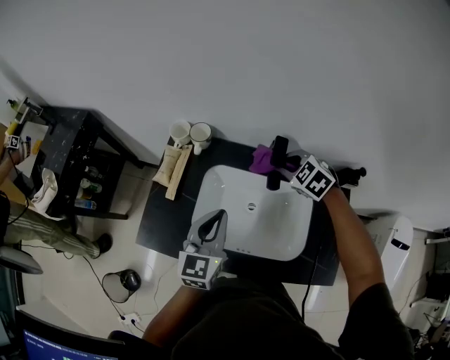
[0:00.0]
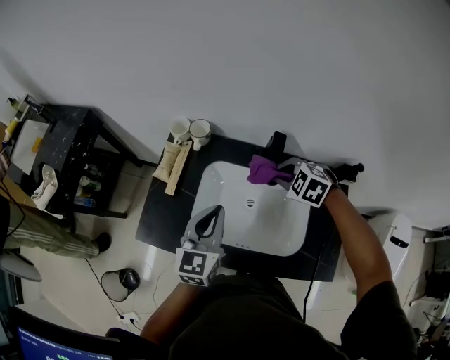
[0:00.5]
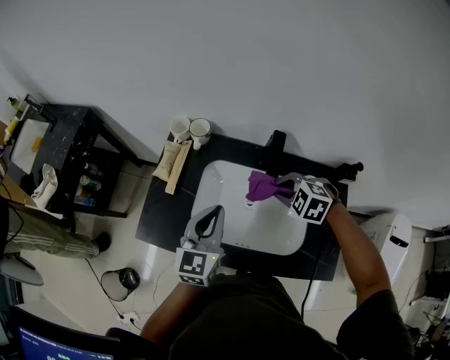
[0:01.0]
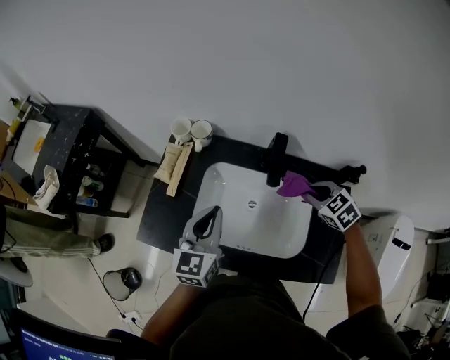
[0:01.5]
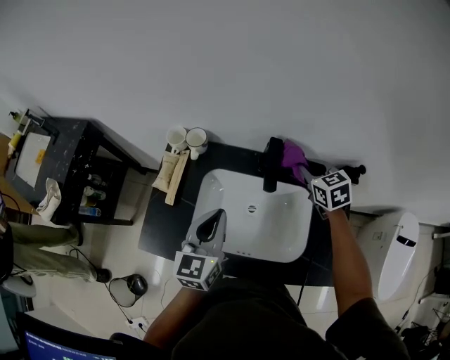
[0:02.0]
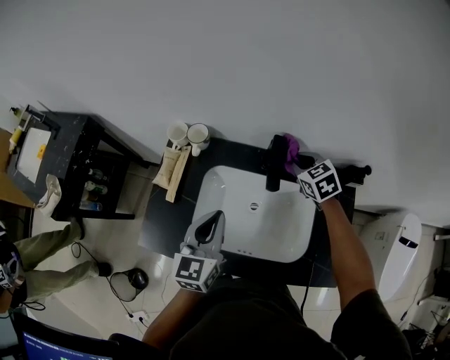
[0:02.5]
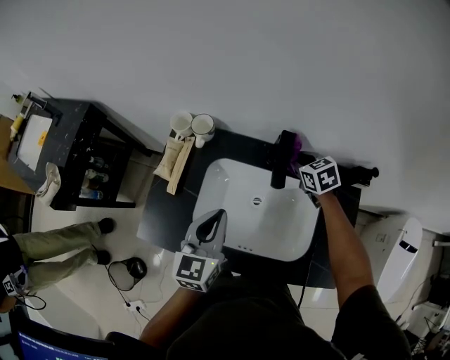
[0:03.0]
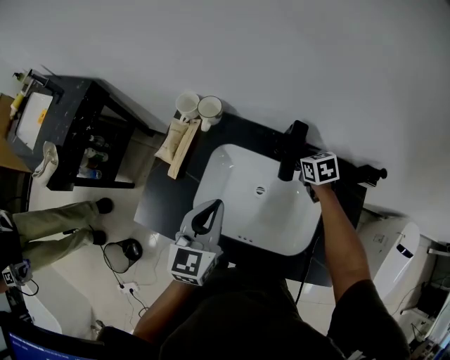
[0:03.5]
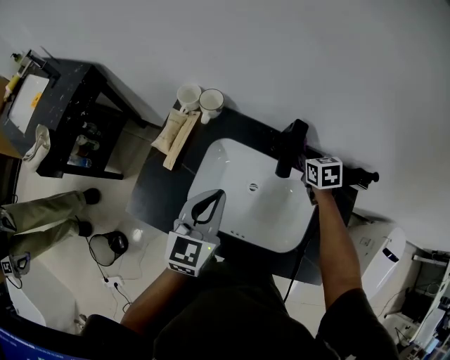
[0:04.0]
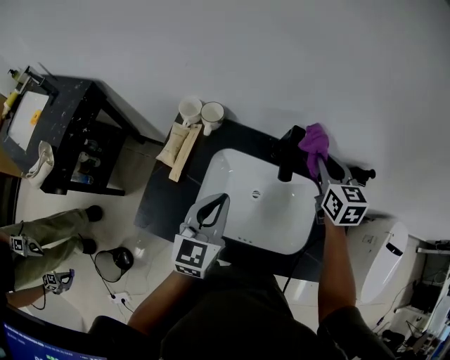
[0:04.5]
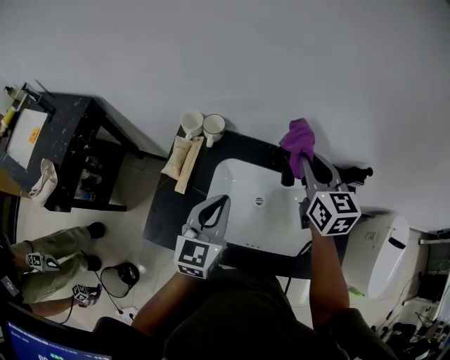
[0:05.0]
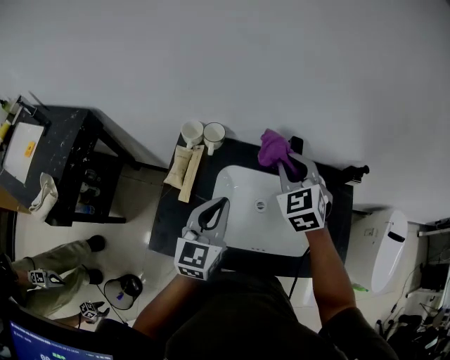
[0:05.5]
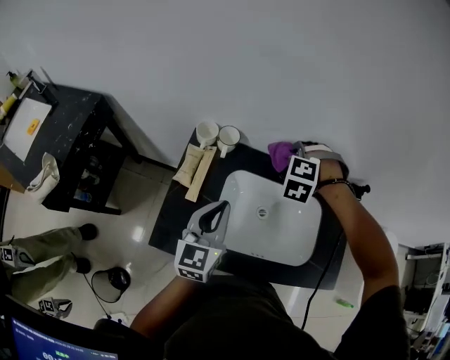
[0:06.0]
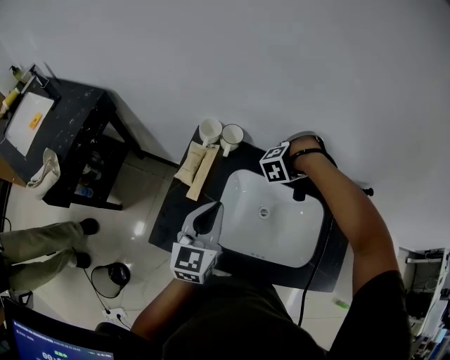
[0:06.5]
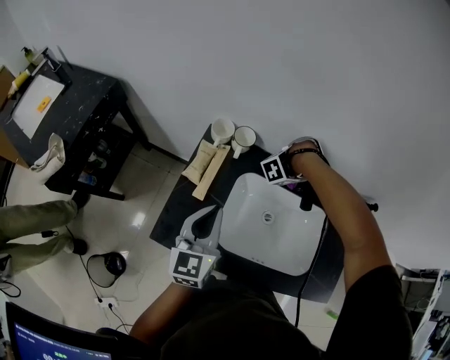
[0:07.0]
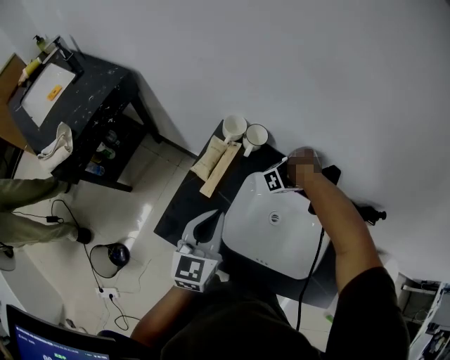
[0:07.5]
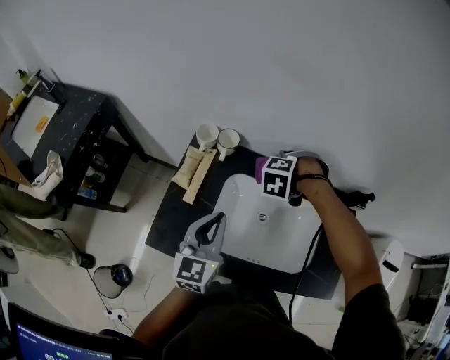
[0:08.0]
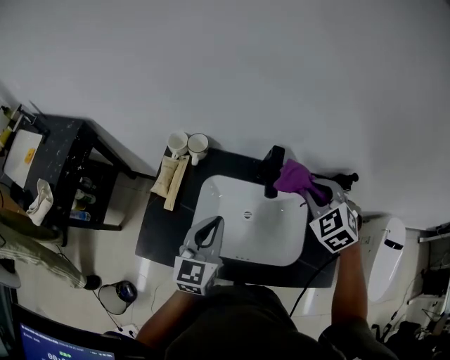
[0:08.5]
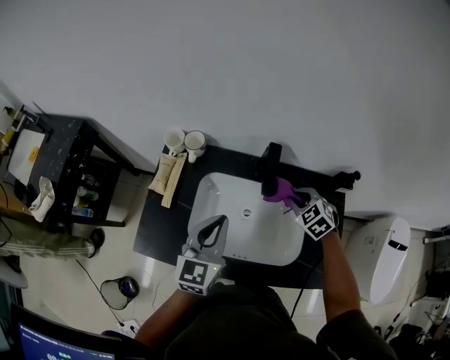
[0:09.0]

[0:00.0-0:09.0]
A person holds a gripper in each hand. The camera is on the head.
0:00.0 to 0:02.0: The right gripper moves to the right, approximately 10 cm, and rotates some 40 degrees.
0:02.0 to 0:04.5: The right gripper moves about 15 cm downward and comes back.
0:04.5 to 0:07.0: The right gripper goes approximately 15 cm downward, and rotates about 140 degrees. The left gripper moves roughly 10 cm.
0:07.0 to 0:09.0: The right gripper moves up and down over about 20 cm, changing direction 2 times, and changes its angle by some 90 degrees. Meanwhile the left gripper changes place by some 15 cm.

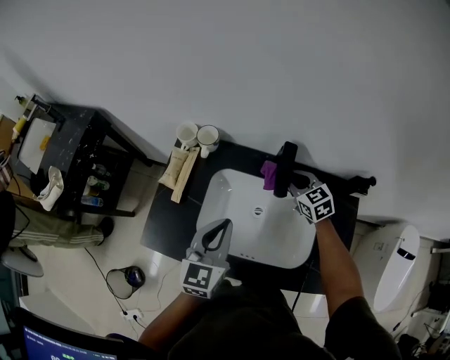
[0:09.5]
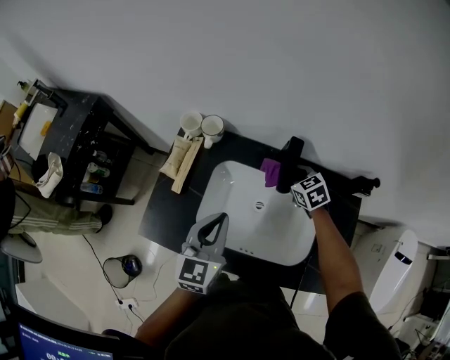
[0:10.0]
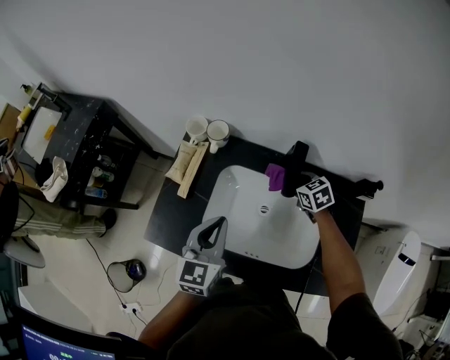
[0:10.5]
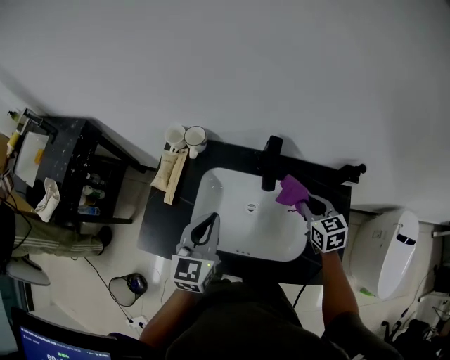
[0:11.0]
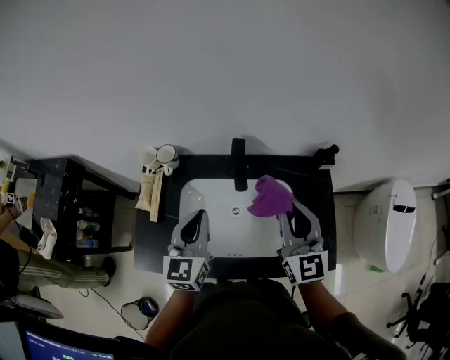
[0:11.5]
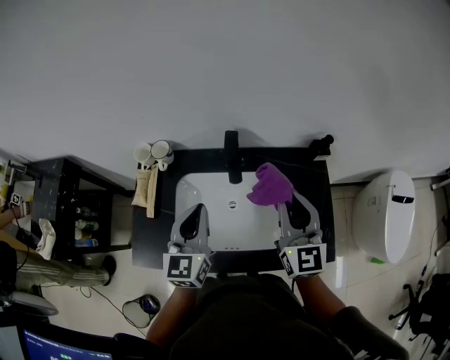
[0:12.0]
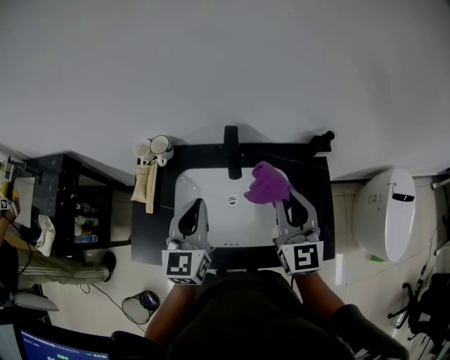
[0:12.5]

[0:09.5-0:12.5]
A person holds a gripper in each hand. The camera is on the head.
0:09.5 to 0:11.0: The right gripper moves backward and to the right, approximately 15 cm.
0:11.0 to 0:12.5: The left gripper ends up about 5 cm from where it was. Meanwhile the right gripper shifts roughly 20 cm upward and backward, and tilts its fingers about 30 degrees upward.

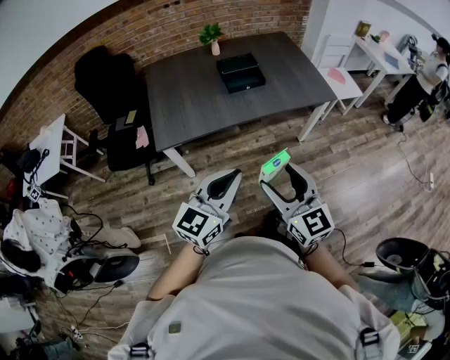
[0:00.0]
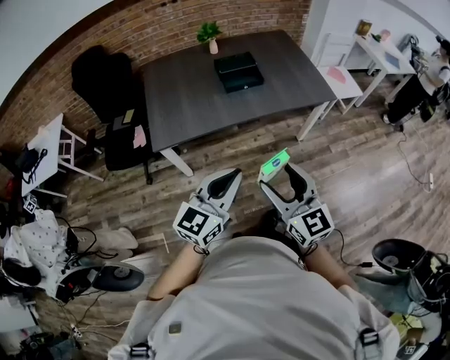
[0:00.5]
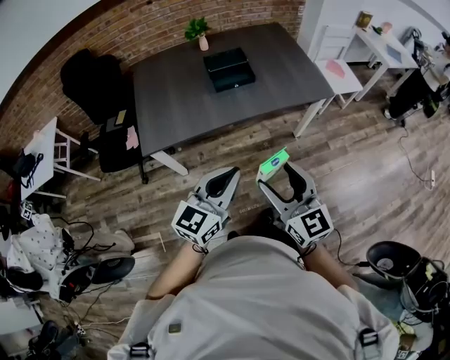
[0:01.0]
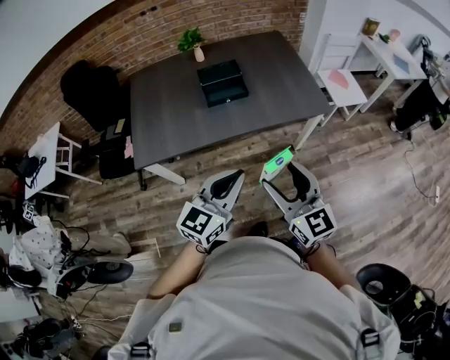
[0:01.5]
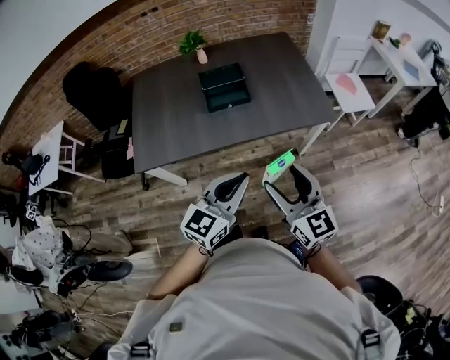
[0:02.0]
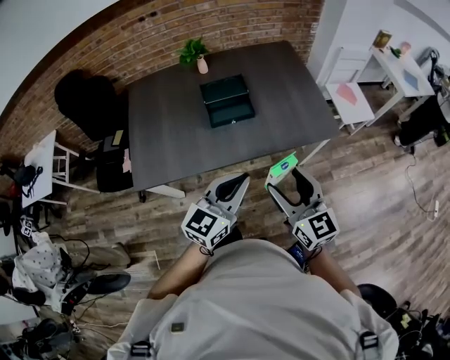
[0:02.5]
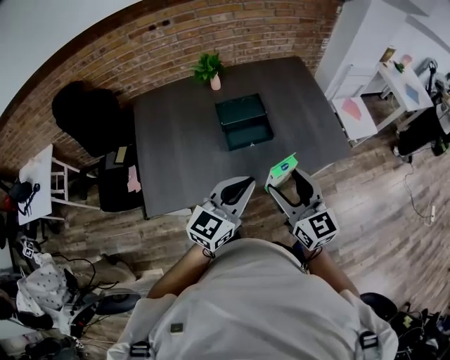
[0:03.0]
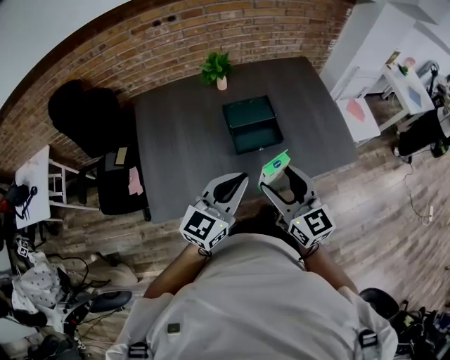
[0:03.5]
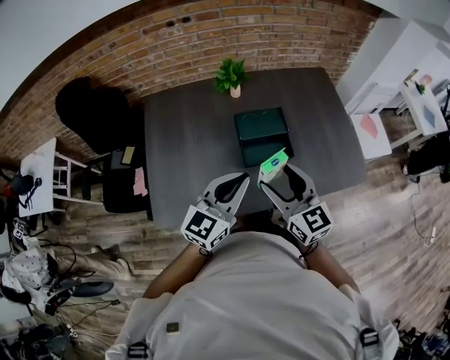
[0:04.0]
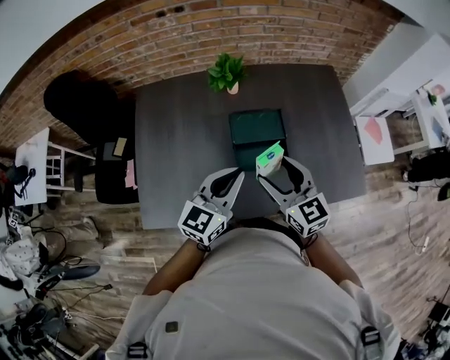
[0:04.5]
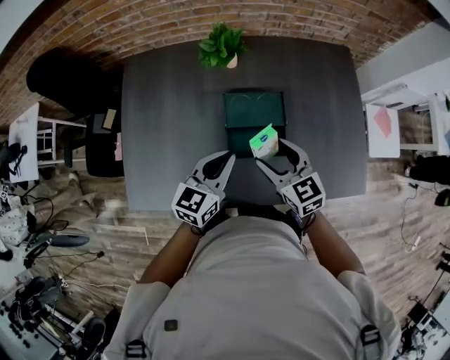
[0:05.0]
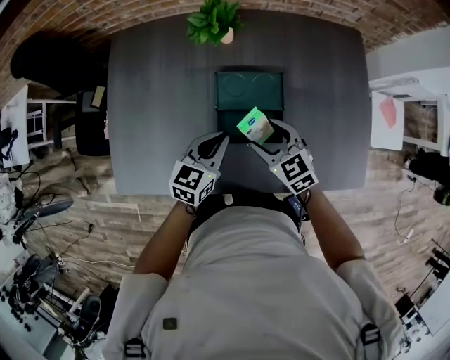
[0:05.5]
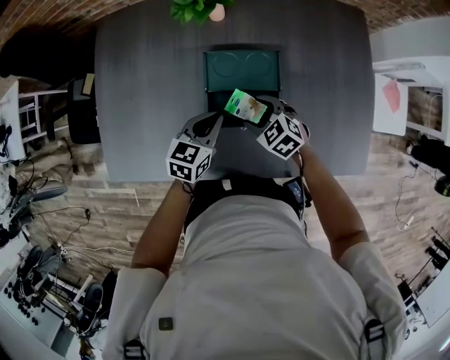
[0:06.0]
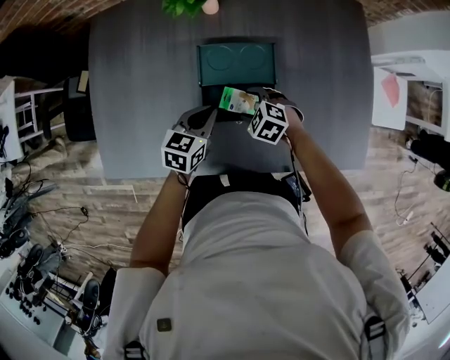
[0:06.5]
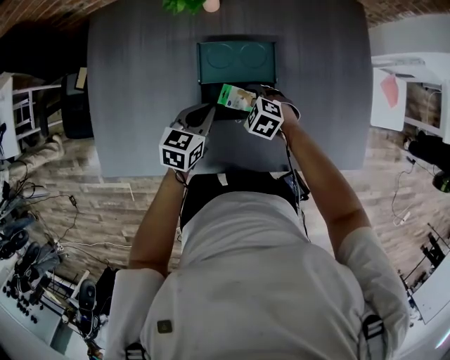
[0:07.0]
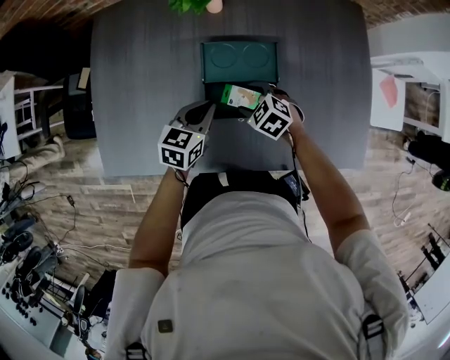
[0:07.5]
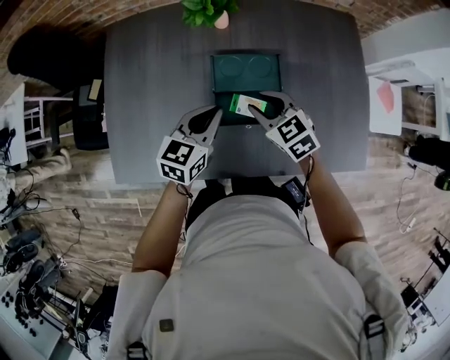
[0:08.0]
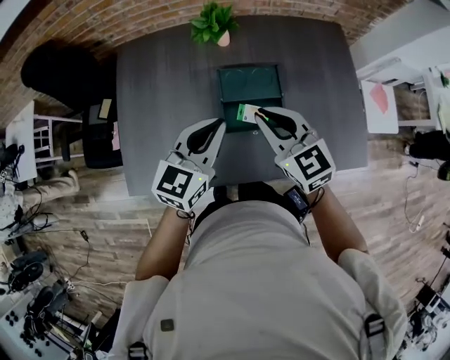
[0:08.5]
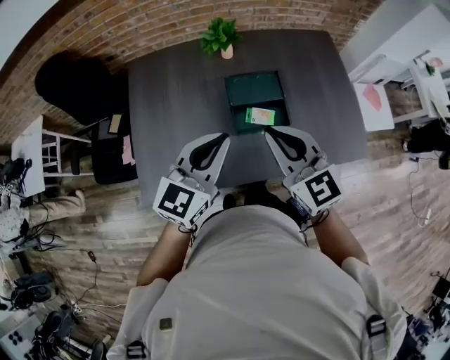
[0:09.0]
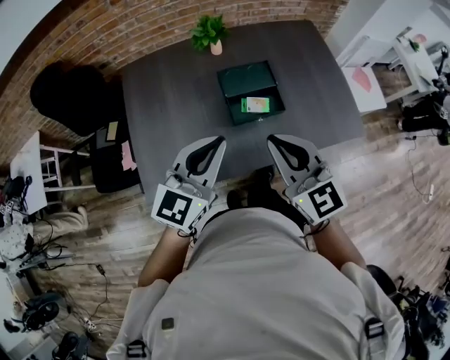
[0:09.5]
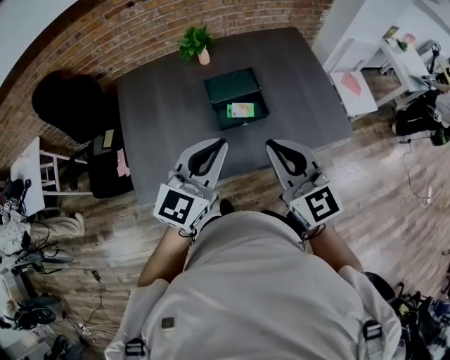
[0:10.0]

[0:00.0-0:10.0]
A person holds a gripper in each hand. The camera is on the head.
0:00.0 to 0:02.0: Both grippers move forward and to the right, about 30 cm.
0:02.0 to 0:04.0: The grippers both shift forward and to the left by about 40 cm.
0:04.0 to 0:06.0: The two grippers go approximately 35 cm downward and forward. The right gripper points its fingers some 40 degrees further downward, while the left gripper angles its fingers downward, by about 30 degrees.
0:06.0 to 0:08.0: Both grippers travel together upward, approximately 10 cm. The right gripper closes up.
0:08.0 to 0:10.0: The grippers both shift backward and upward by roughly 35 cm. The left gripper rotates approximately 30 degrees, while the right gripper points its fingers approximately 30 degrees further upward, and closes.

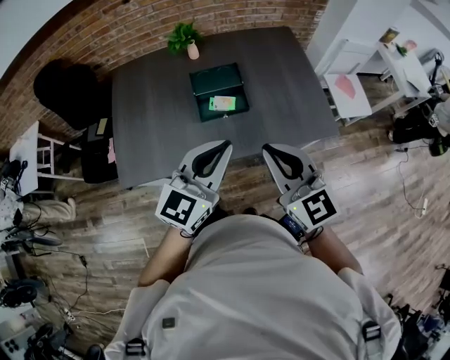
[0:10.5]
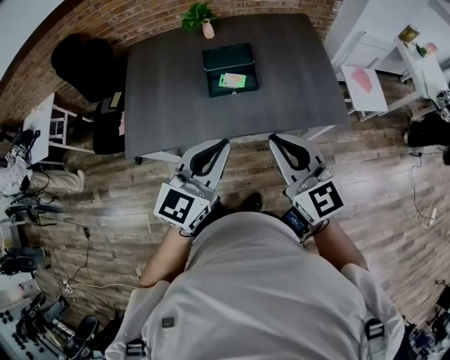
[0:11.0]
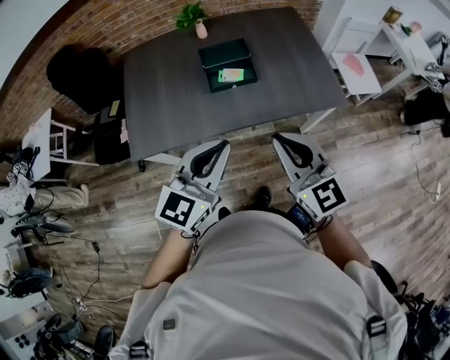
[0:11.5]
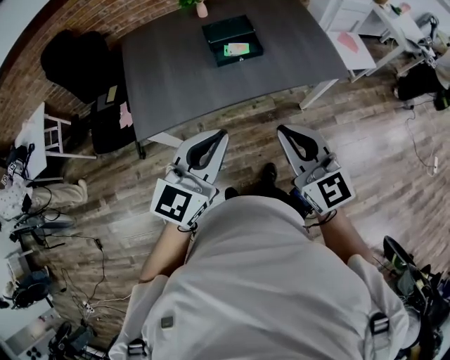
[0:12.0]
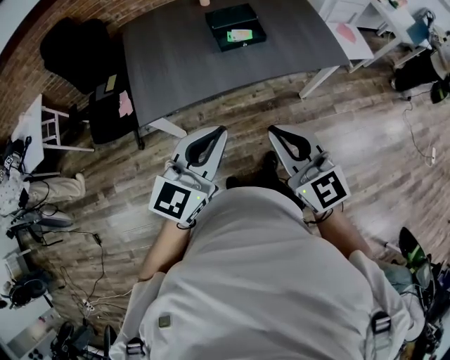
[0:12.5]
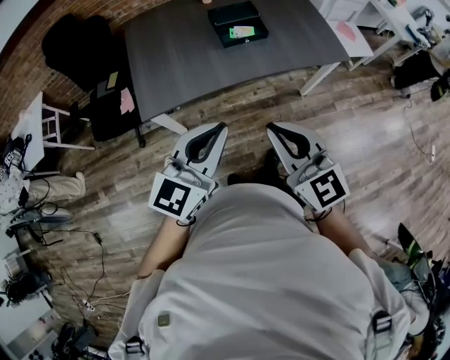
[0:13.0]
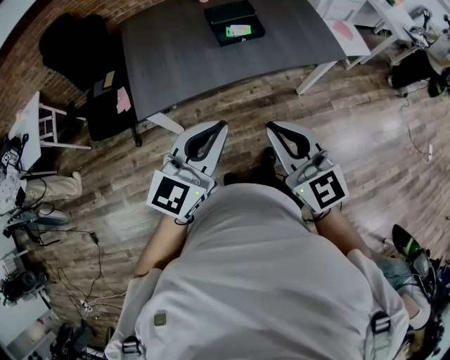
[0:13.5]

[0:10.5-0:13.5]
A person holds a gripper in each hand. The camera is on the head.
0:10.5 to 0:12.0: The two grippers go roughly 25 cm backward and to the left.
0:12.0 to 0:13.5: The right gripper moves backward and to the left, about 10 cm. The left gripper goes about 10 cm backward.

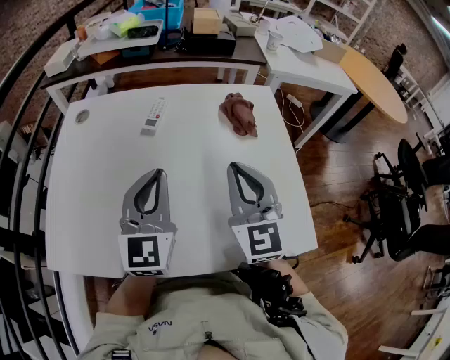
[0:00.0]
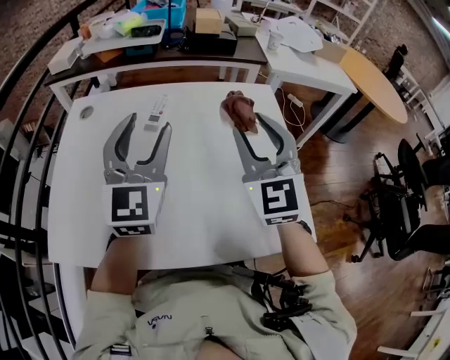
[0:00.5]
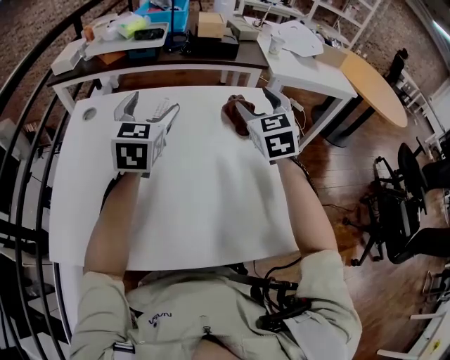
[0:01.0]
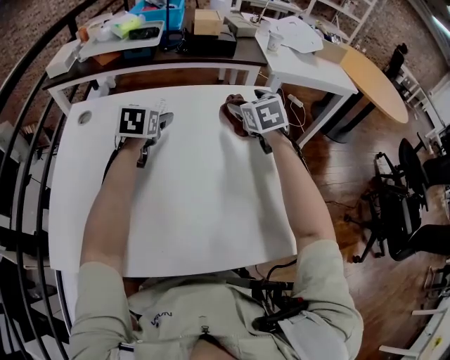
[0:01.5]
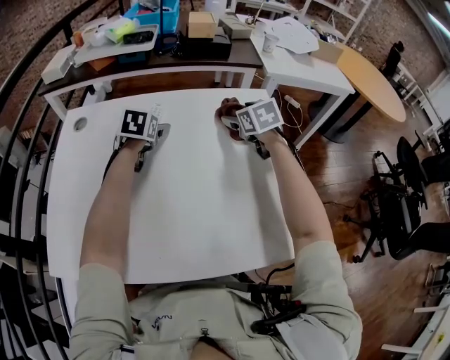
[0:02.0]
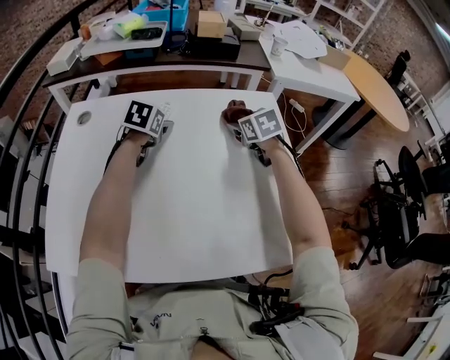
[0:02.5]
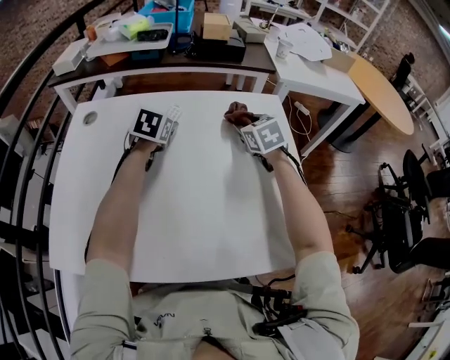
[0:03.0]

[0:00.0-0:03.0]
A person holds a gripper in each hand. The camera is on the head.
0:00.0 to 0:01.5: Both grippers move forward, about 25 cm. The right gripper tilts its fingers some 30 degrees downward, and opens, while the left gripper tips its fingers downward by approximately 30 degrees, and opens.
0:01.5 to 0:03.0: The right gripper goes roughly 5 cm downward, and closes up. Meanwhile the left gripper closes up.
